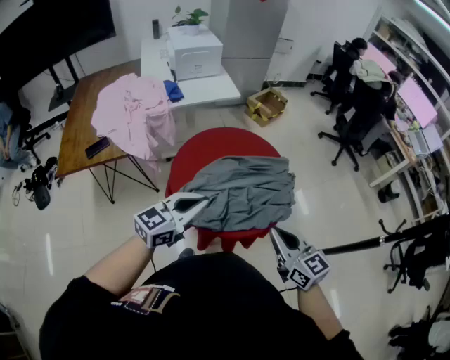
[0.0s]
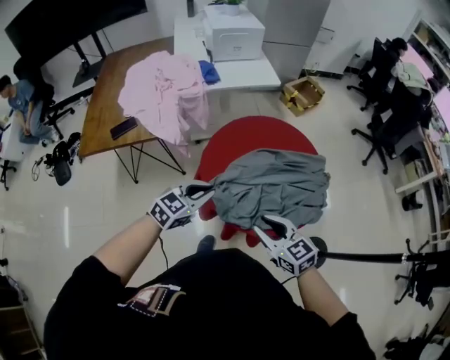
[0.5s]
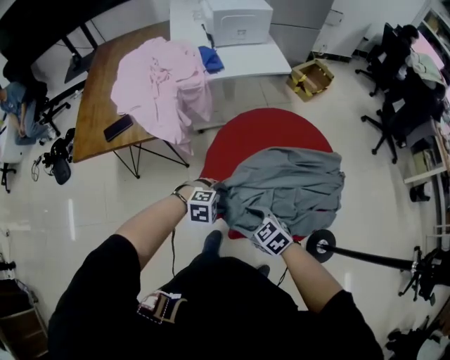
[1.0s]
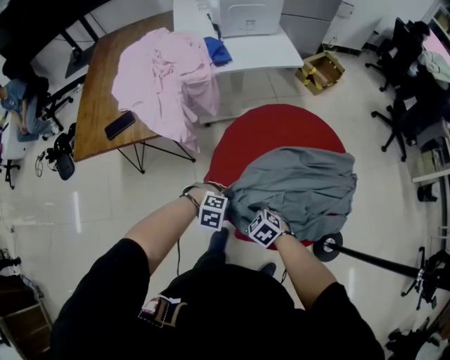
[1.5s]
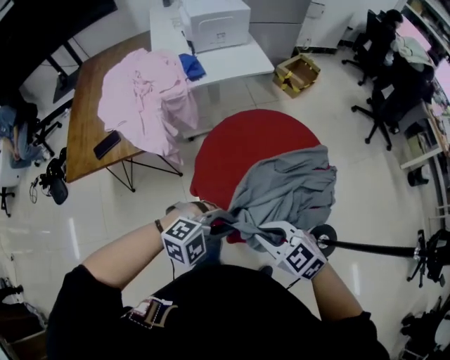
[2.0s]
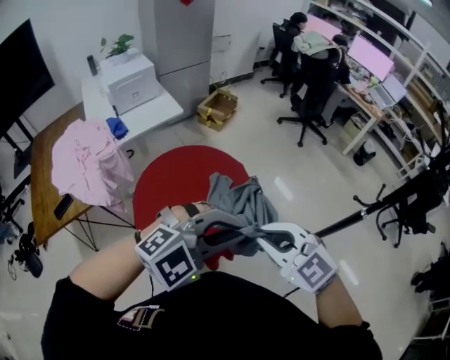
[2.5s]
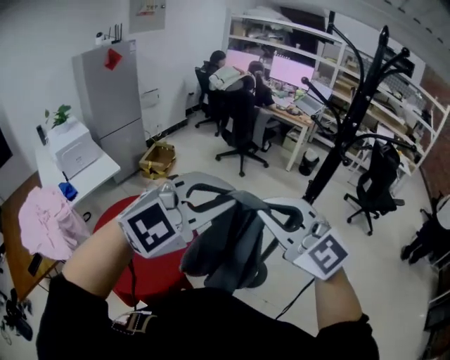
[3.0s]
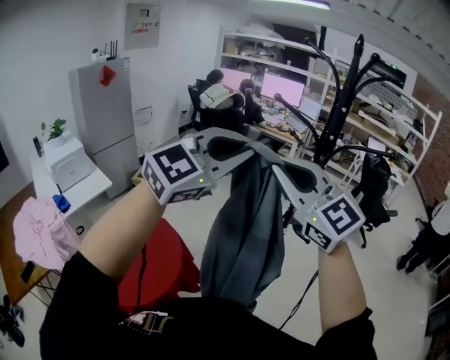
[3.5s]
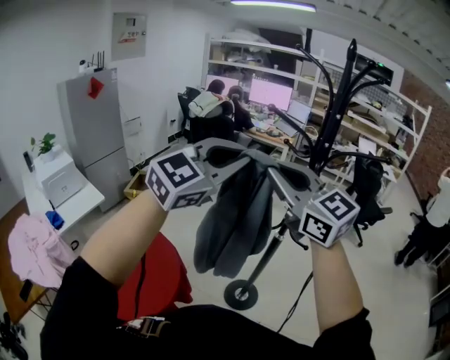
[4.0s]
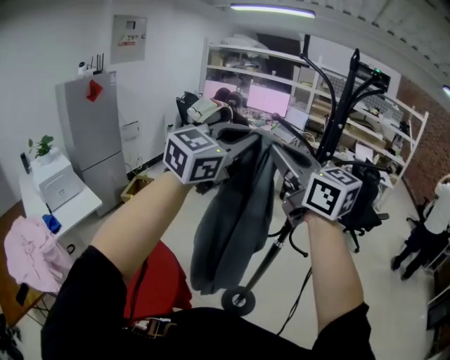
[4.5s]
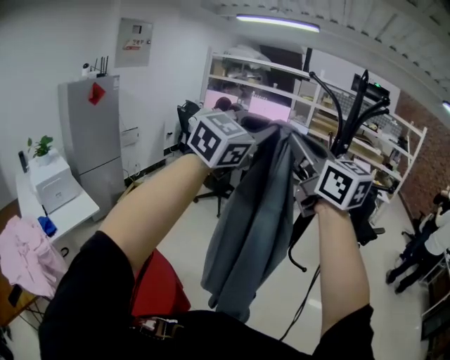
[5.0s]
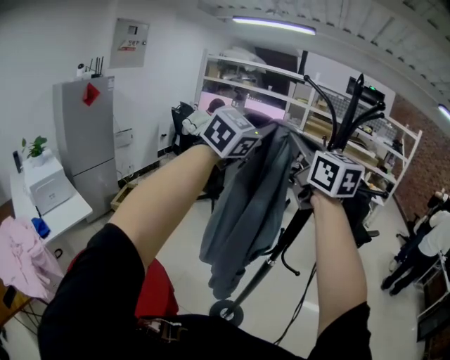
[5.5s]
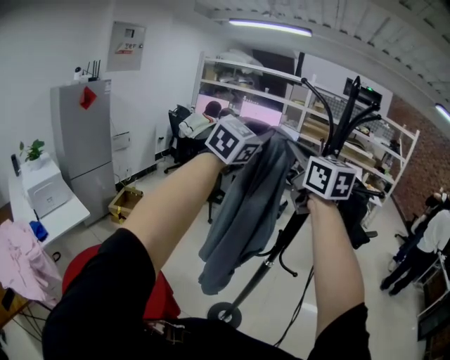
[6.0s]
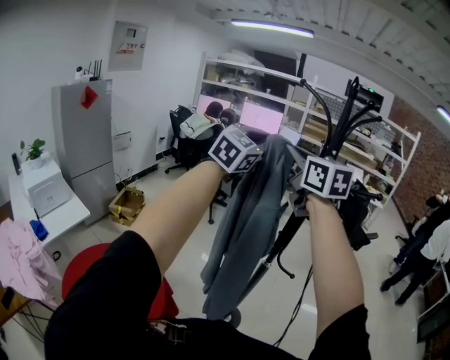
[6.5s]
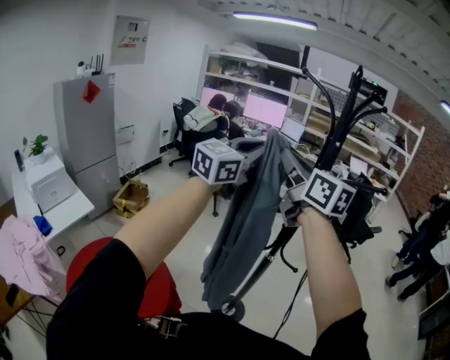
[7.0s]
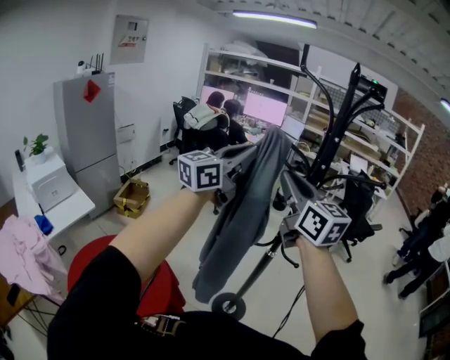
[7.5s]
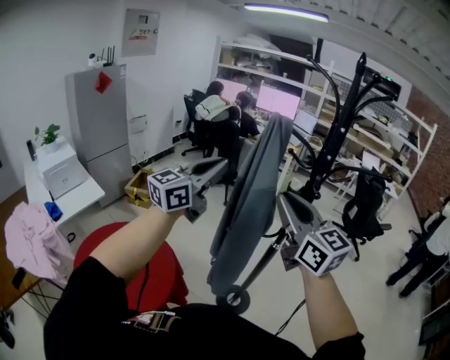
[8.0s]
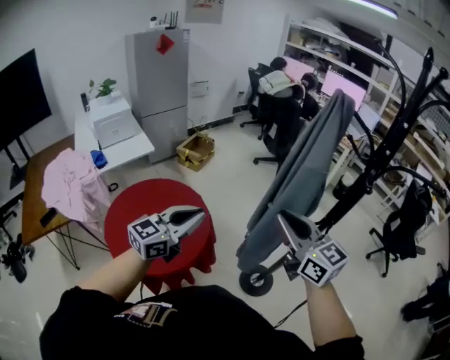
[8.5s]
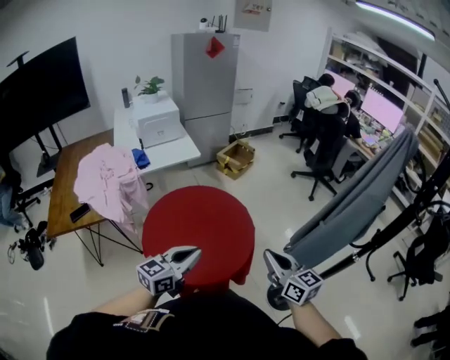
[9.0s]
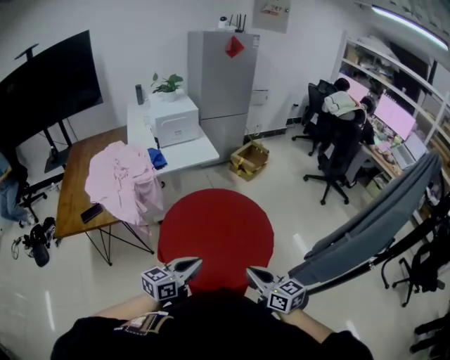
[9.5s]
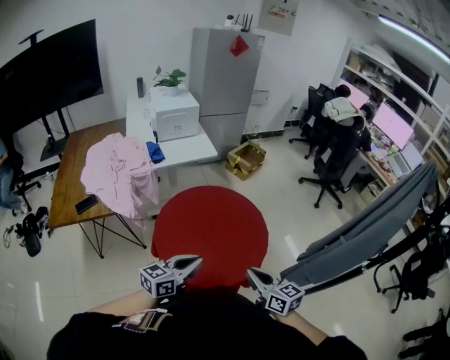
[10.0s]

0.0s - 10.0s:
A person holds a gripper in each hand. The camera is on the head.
0.0s - 2.0s: The left gripper travels downward and back again, approximately 30 cm each way, points its fingers approximately 40 degrees further downward, and opens and closes again. Meanwhile the right gripper moves roughly 30 cm downward and comes back, turns by some 40 degrees, and opens, then closes again.
2.0s - 4.0s: The two grippers travel together, approximately 50 cm. Both grippers travel together upward, approximately 50 cm. The left gripper angles its fingers upward, by about 40 degrees. Meanwhile the right gripper angles its fingers upward, by roughly 40 degrees.
4.0s - 6.0s: Both grippers travel together forward and upward, approximately 20 cm. The right gripper swivels about 20 degrees.
6.0s - 8.0s: The right gripper heads downward and backward, covering some 20 cm, while the left gripper travels downward, backward and to the left by roughly 20 cm, and turns by approximately 30 degrees.
8.0s - 10.0s: The left gripper moves about 60 cm, and swivels about 50 degrees; the right gripper goes roughly 40 cm downward, and changes its angle by some 50 degrees.

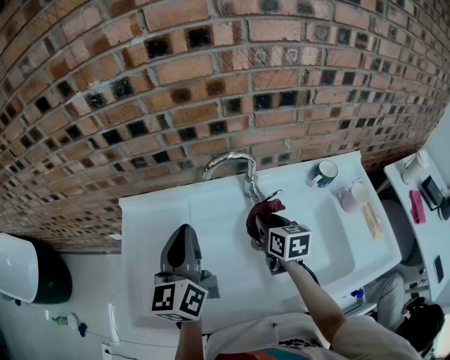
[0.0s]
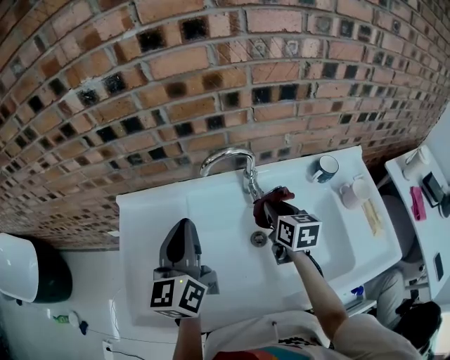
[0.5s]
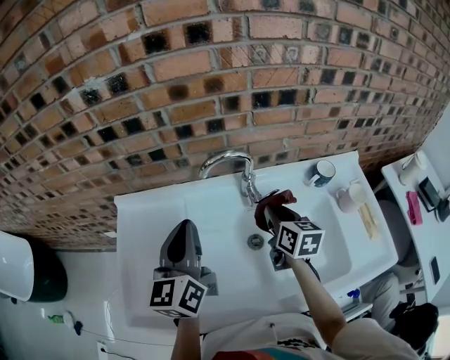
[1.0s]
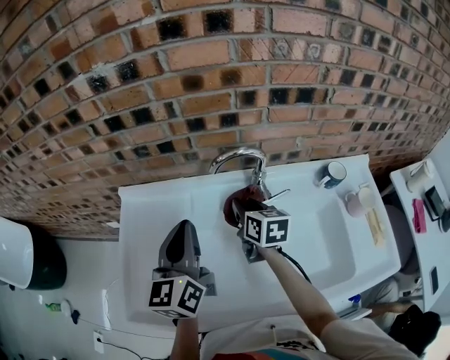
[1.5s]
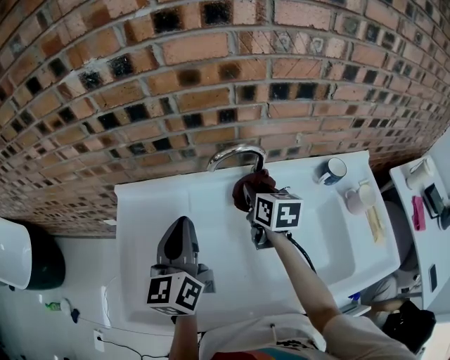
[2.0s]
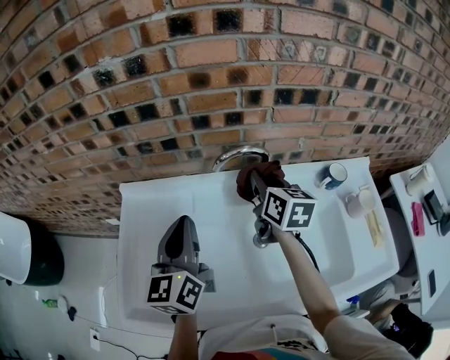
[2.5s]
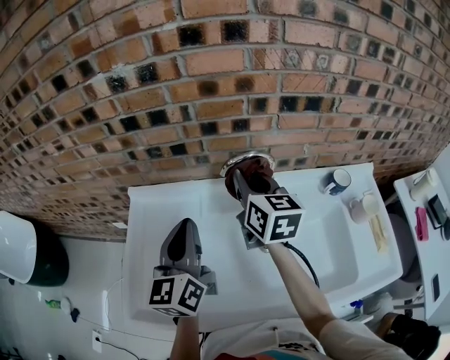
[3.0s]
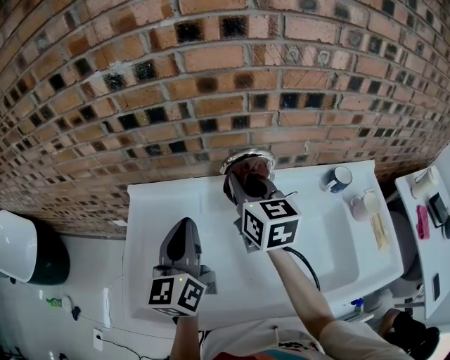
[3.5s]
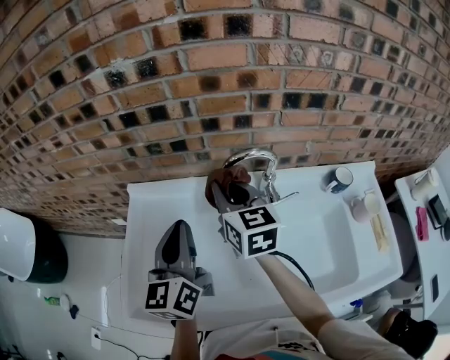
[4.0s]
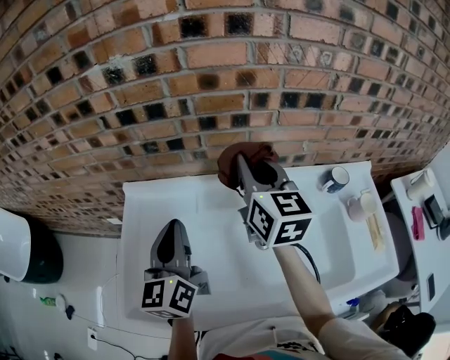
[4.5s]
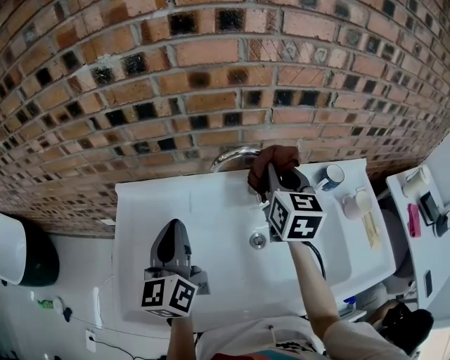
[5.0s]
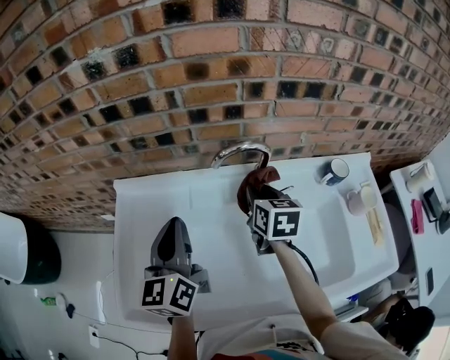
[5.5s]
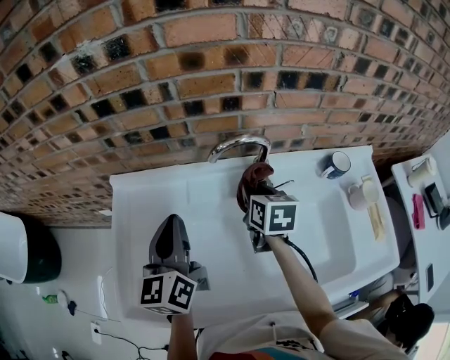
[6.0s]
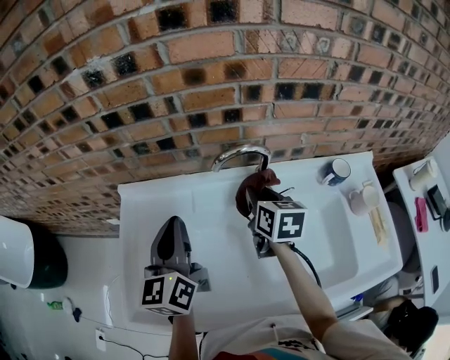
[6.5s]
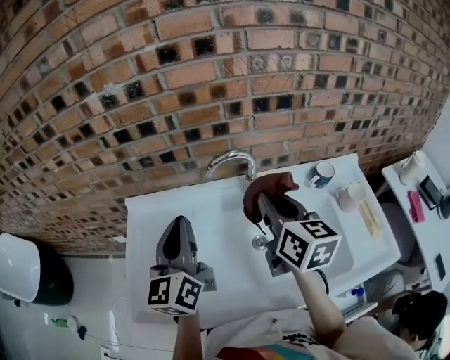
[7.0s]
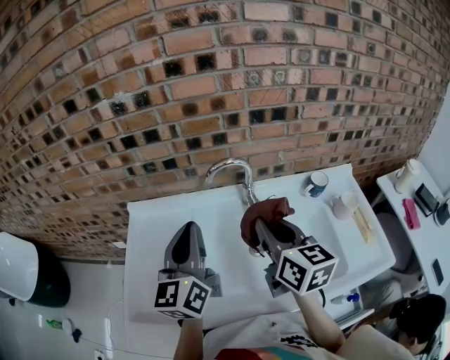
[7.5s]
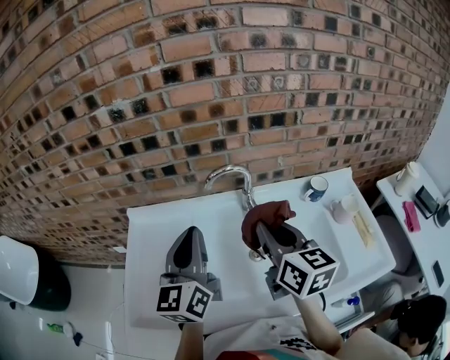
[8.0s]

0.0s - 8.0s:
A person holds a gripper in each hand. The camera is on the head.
0.0s - 2.0s: The right gripper goes left and right, some 10 cm each way, reversing 2 times.
2.0s - 4.0s: The right gripper is displaced to the left and upward by roughly 15 cm, and swivels approximately 20 degrees.
4.0s - 6.0s: The right gripper moves downward and to the right, some 15 cm, and changes its angle by about 30 degrees.
6.0s - 8.0s: The left gripper heads upward, backward and to the right, covering approximately 15 cm. The right gripper moves upward and backward, about 25 cm, and swivels approximately 30 degrees.

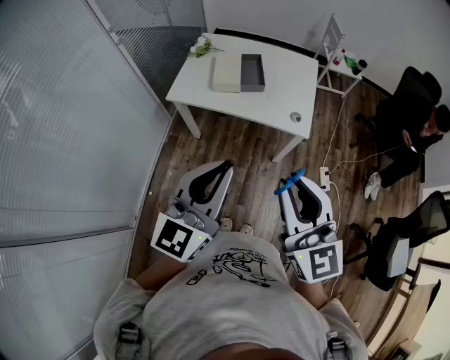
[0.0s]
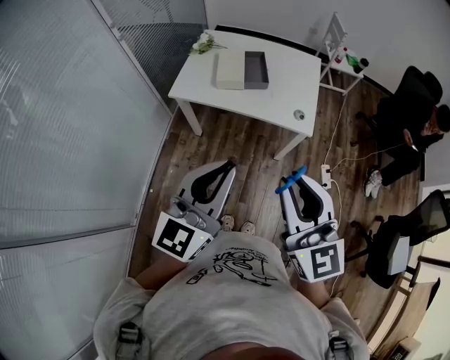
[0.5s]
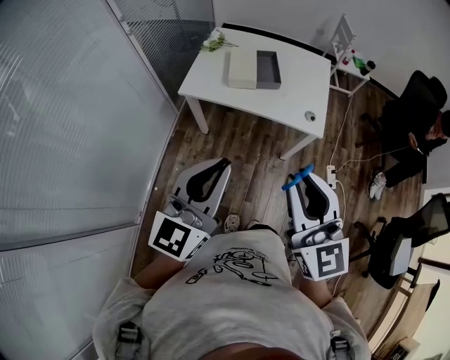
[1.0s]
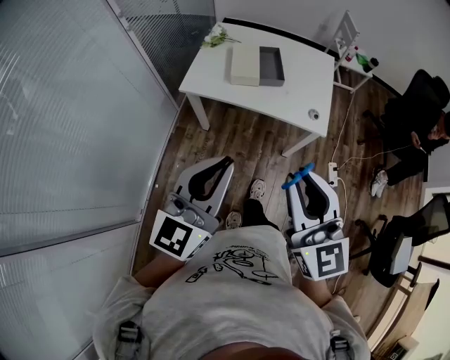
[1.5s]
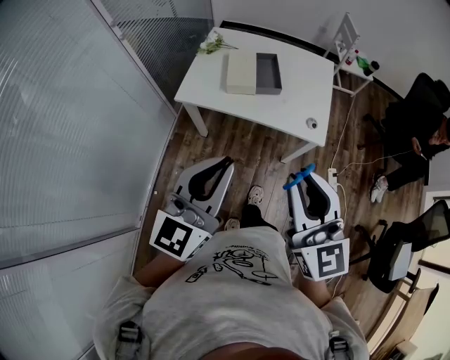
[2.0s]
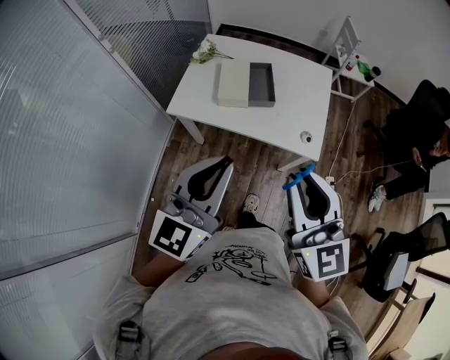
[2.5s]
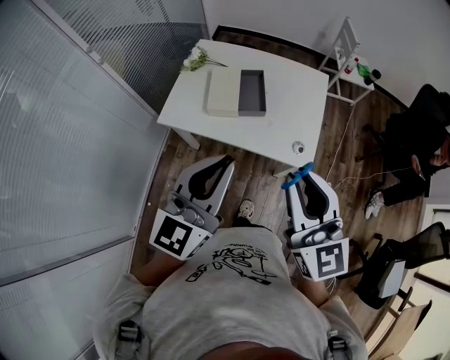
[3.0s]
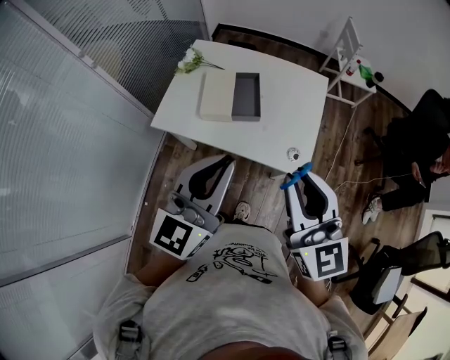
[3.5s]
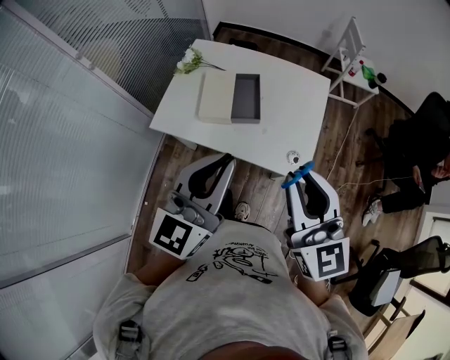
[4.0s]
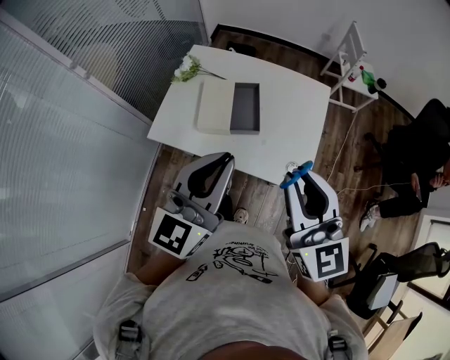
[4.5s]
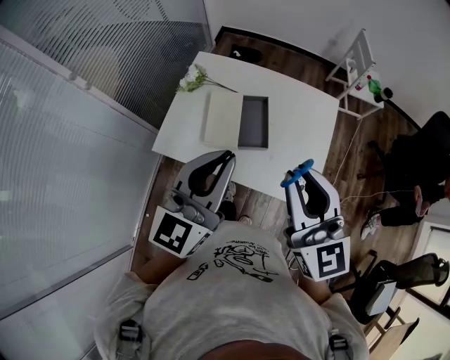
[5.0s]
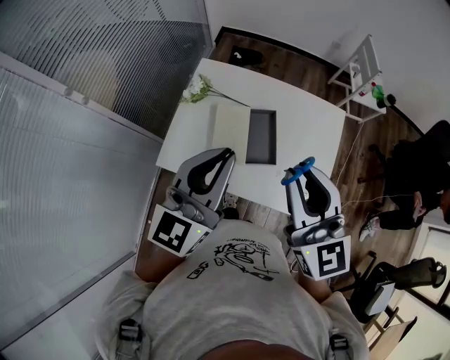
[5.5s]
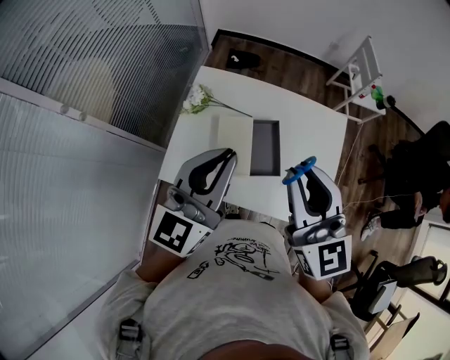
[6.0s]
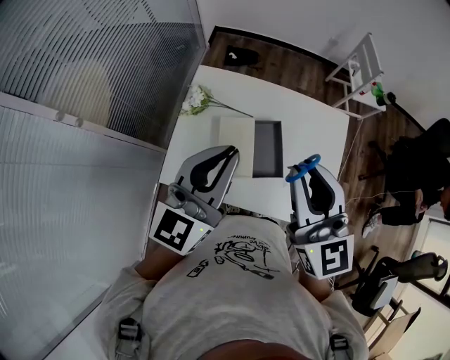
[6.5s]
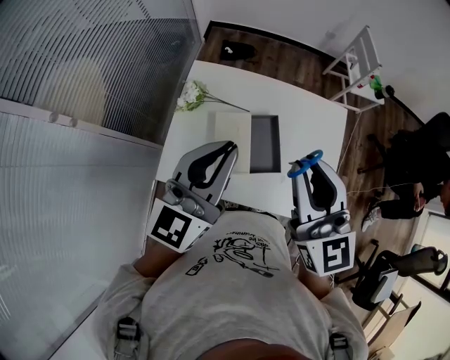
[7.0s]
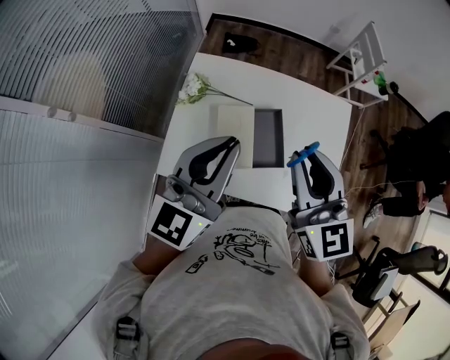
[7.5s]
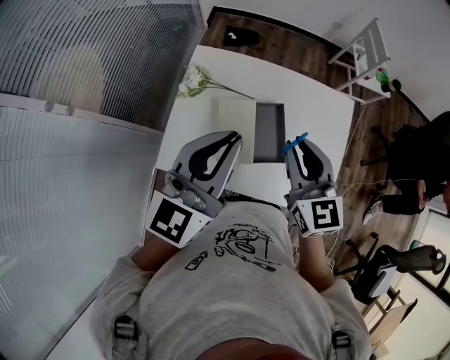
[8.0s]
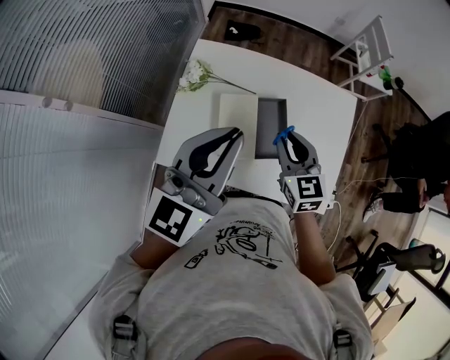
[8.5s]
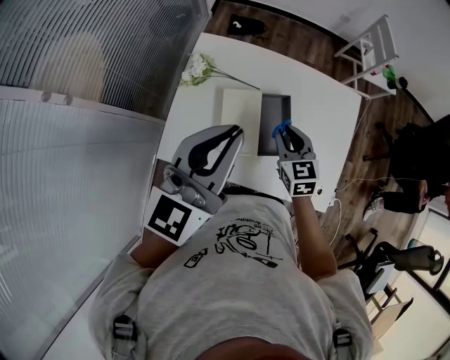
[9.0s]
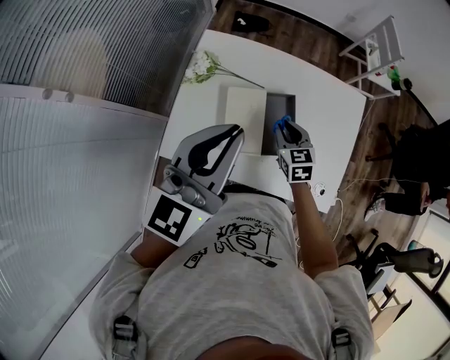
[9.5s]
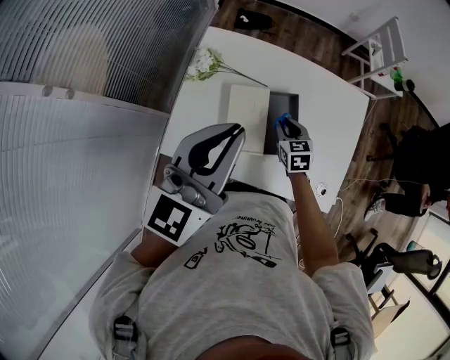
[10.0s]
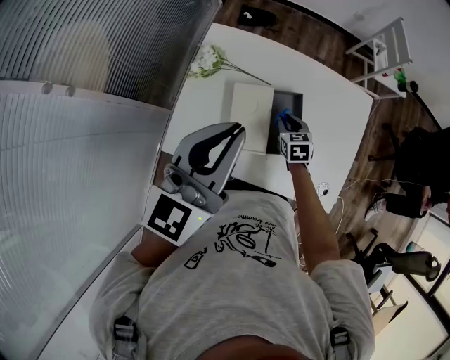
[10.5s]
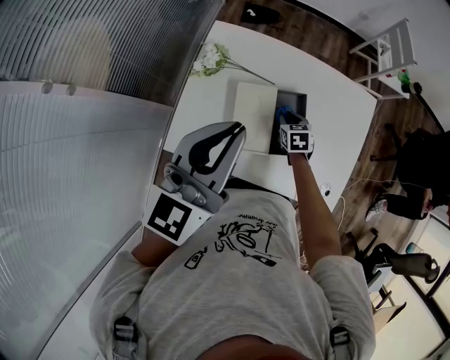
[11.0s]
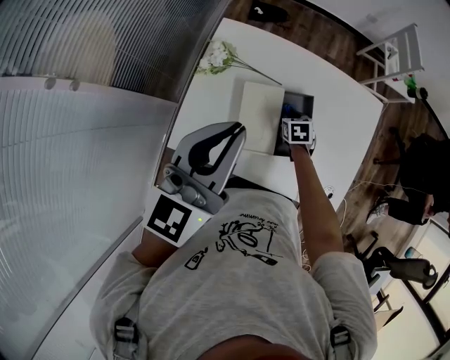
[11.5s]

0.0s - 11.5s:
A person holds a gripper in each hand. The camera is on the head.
0.0s - 2.0s: The two grippers go approximately 10 cm forward and to the left.
2.0s - 4.0s: The two grippers go about 25 cm forward and to the right.
4.0s - 6.0s: Both grippers move forward and to the left, roughly 30 cm.
6.0s - 7.5s: The right gripper ends up about 5 cm from where it was.
7.5s - 9.5s: The right gripper shifts roughly 30 cm downward, and angles its fingers downward, by approximately 30 degrees.
9.5s - 11.5s: The right gripper moves downward, about 15 cm, and changes its angle by about 30 degrees.
